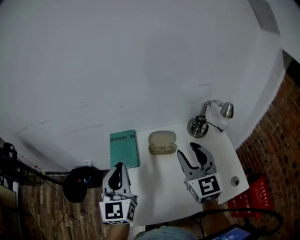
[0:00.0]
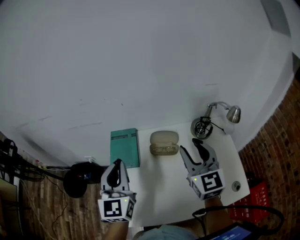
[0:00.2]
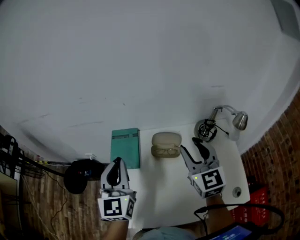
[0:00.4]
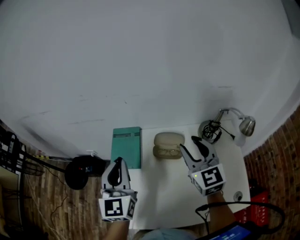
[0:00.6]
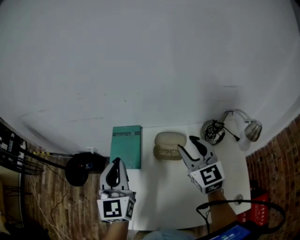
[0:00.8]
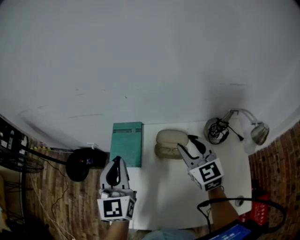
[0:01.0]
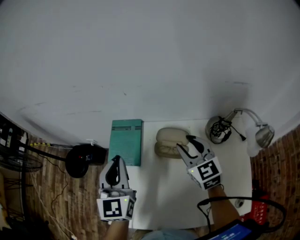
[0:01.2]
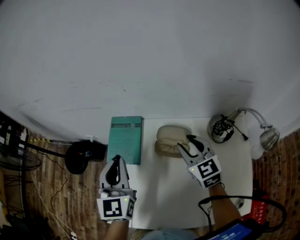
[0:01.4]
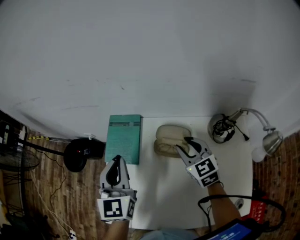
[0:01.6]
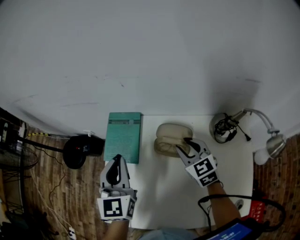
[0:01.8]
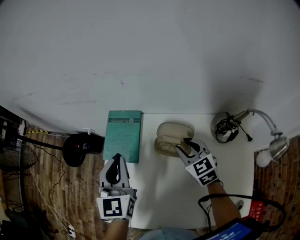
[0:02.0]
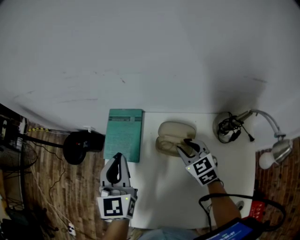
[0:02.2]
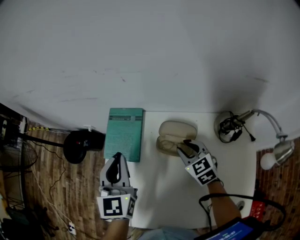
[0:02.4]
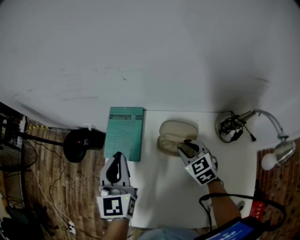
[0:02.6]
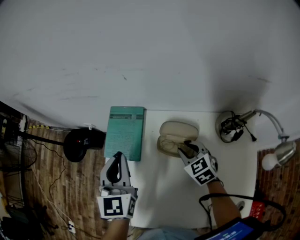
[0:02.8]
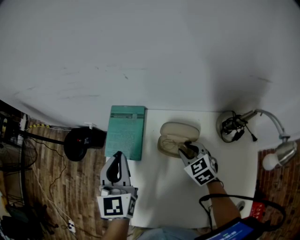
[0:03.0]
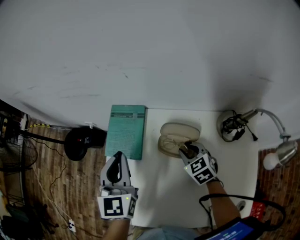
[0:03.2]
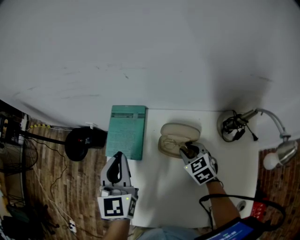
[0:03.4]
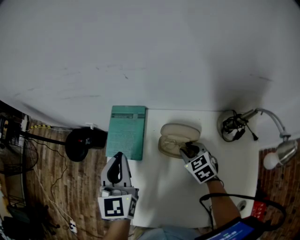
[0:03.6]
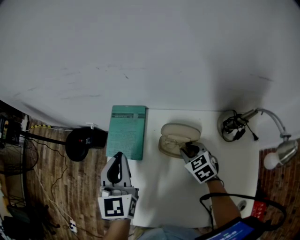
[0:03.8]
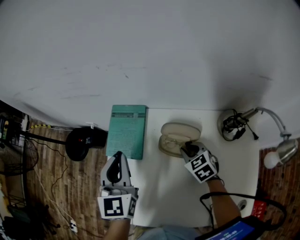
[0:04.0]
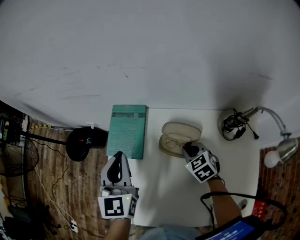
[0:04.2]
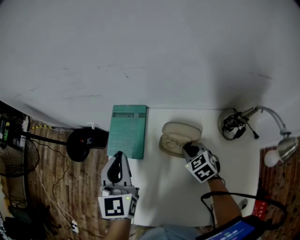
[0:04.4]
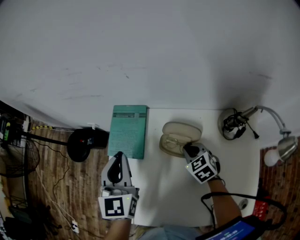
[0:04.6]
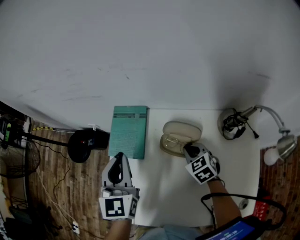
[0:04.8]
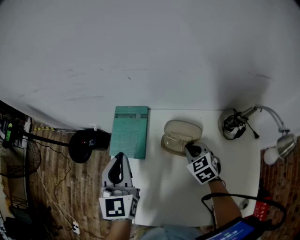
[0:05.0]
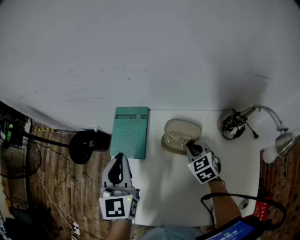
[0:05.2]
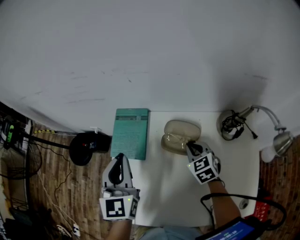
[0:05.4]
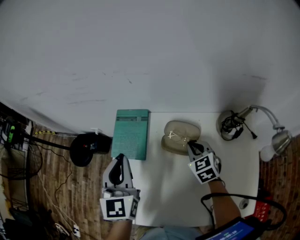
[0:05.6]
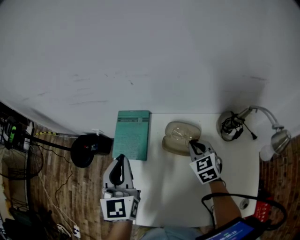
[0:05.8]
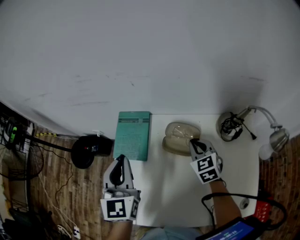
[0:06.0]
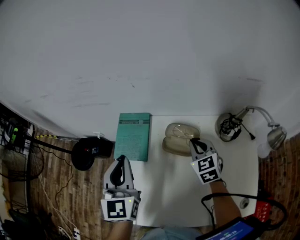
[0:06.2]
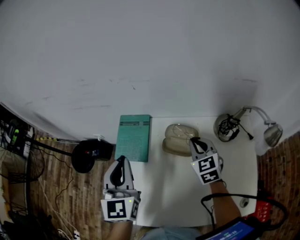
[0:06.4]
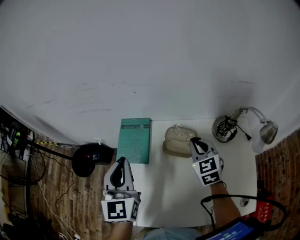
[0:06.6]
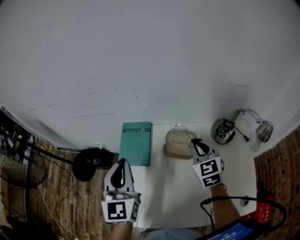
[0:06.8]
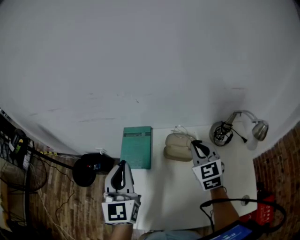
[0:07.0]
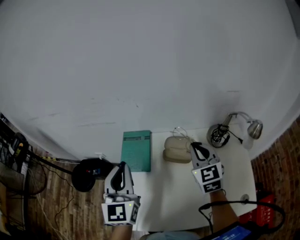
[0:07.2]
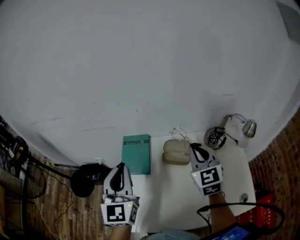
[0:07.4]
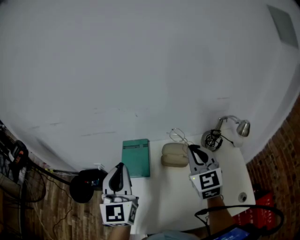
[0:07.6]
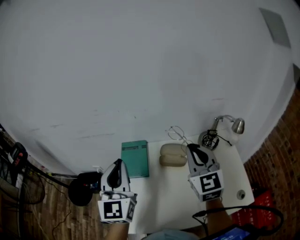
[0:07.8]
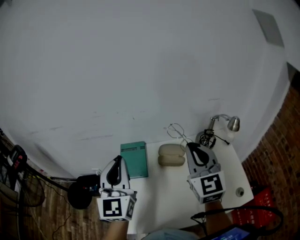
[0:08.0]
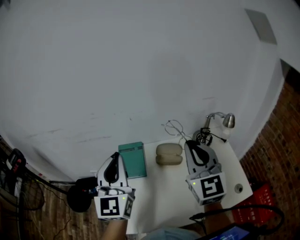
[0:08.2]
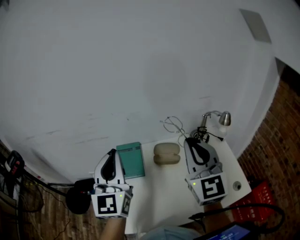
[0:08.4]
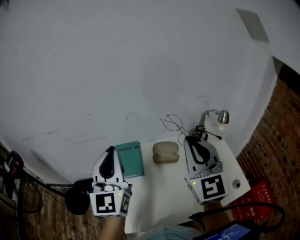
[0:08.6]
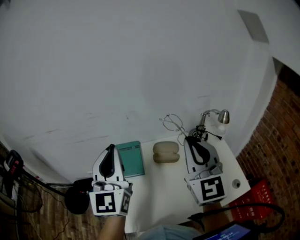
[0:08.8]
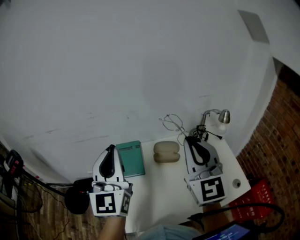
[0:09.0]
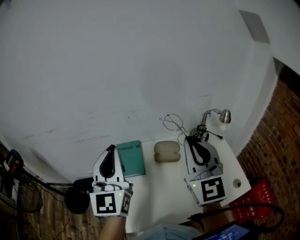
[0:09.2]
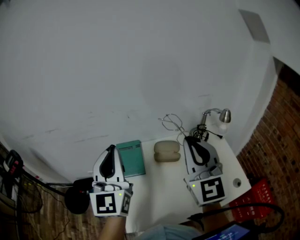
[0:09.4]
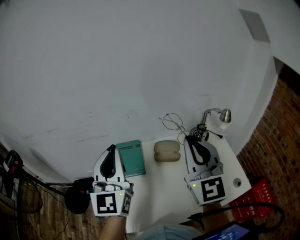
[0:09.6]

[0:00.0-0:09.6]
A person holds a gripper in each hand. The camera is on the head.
0:00.0 to 0:01.6: The left gripper heads forward and downward, covering about 15 cm. Meanwhile the right gripper goes roughly 25 cm downward and forward, and swivels about 30 degrees.
0:01.6 to 0:03.2: The right gripper goes roughly 10 cm downward.
0:03.2 to 0:04.8: The right gripper closes its fingers.
0:04.8 to 0:06.4: The right gripper goes roughly 10 cm upward, and swivels approximately 20 degrees. The left gripper heads upward, covering approximately 5 cm.
0:06.4 to 0:08.0: The right gripper heads upward and backward, covering approximately 30 cm, and angles its fingers upward, by roughly 30 degrees. Meanwhile the left gripper travels upward by some 15 cm.
0:08.0 to 0:09.6: The left gripper shifts approximately 5 cm upward, while the right gripper moves upward and backward, approximately 10 cm.

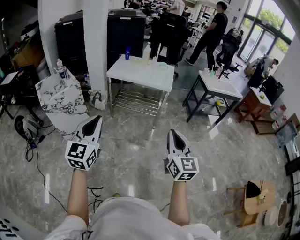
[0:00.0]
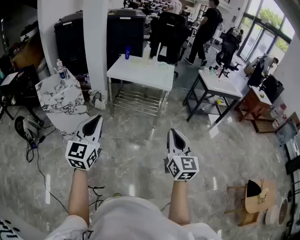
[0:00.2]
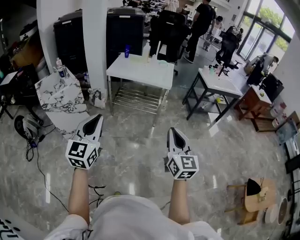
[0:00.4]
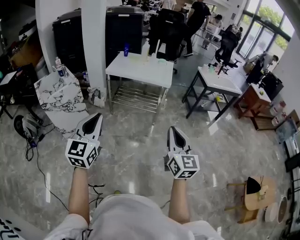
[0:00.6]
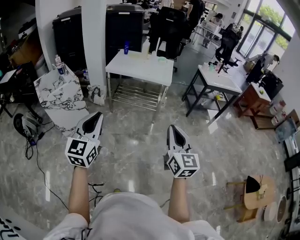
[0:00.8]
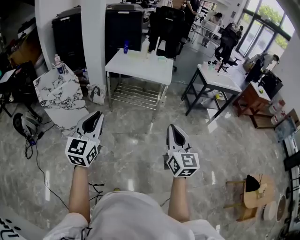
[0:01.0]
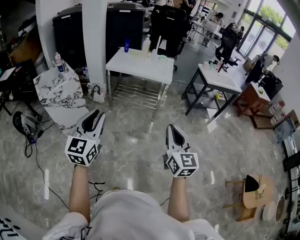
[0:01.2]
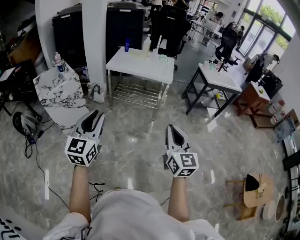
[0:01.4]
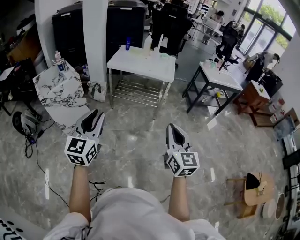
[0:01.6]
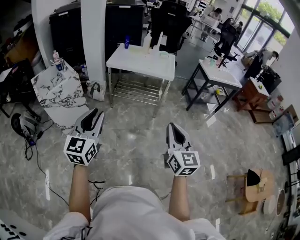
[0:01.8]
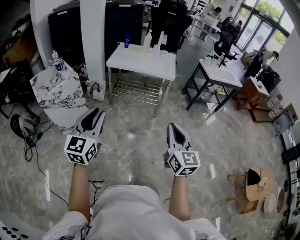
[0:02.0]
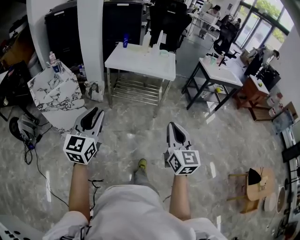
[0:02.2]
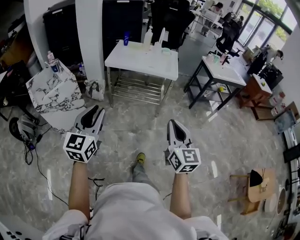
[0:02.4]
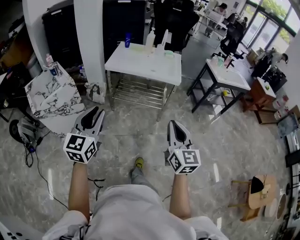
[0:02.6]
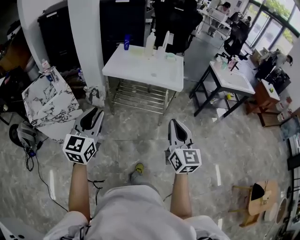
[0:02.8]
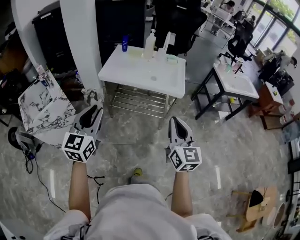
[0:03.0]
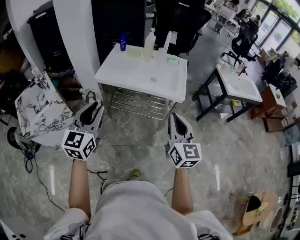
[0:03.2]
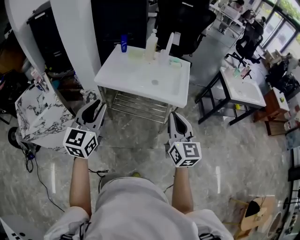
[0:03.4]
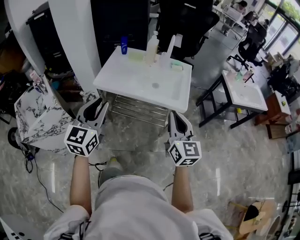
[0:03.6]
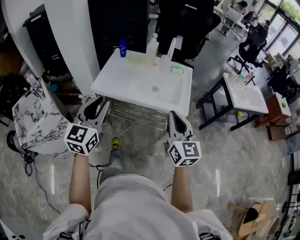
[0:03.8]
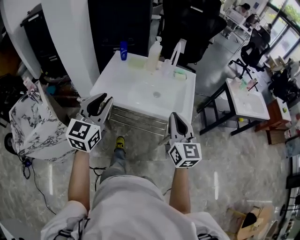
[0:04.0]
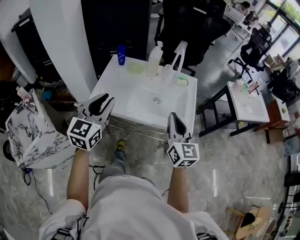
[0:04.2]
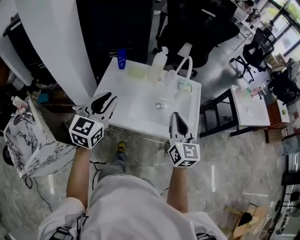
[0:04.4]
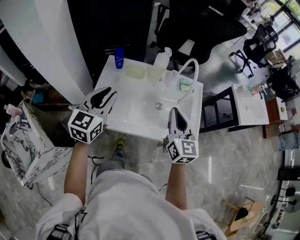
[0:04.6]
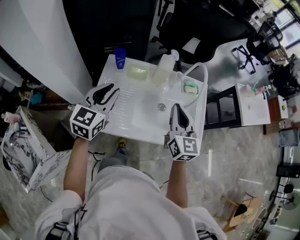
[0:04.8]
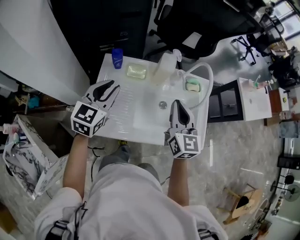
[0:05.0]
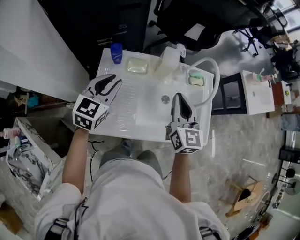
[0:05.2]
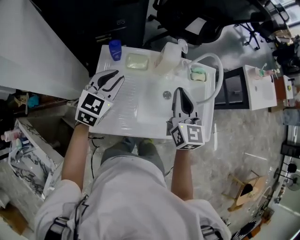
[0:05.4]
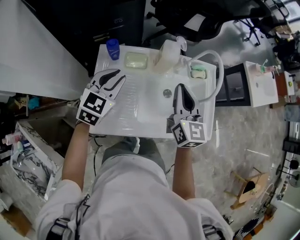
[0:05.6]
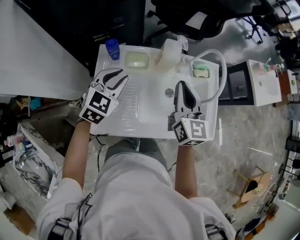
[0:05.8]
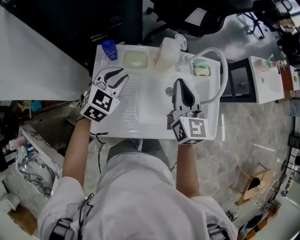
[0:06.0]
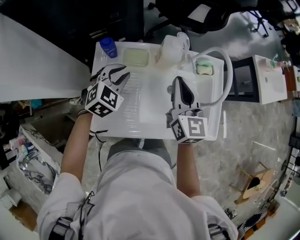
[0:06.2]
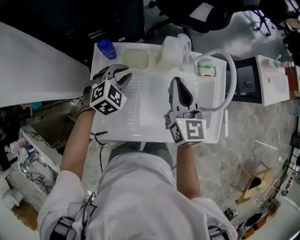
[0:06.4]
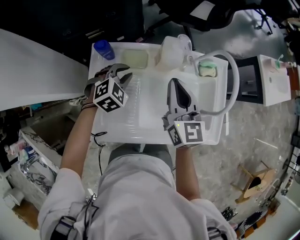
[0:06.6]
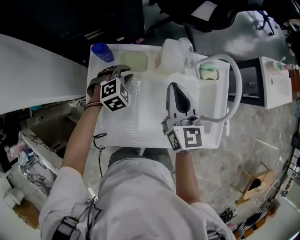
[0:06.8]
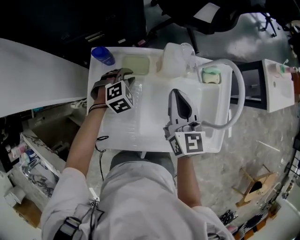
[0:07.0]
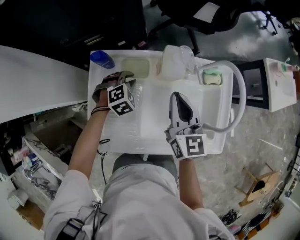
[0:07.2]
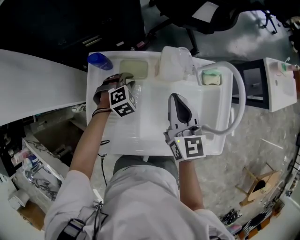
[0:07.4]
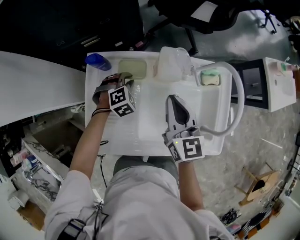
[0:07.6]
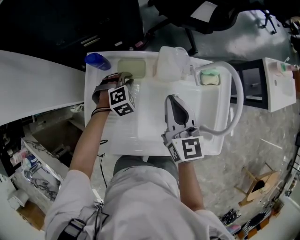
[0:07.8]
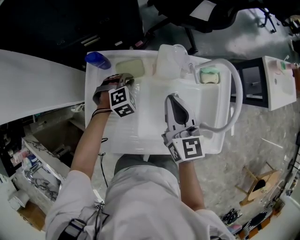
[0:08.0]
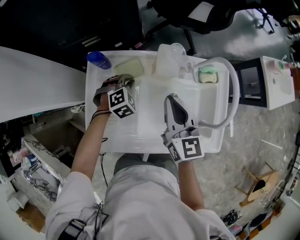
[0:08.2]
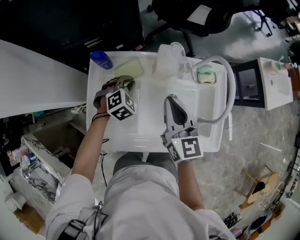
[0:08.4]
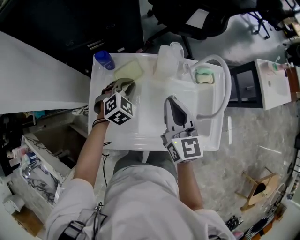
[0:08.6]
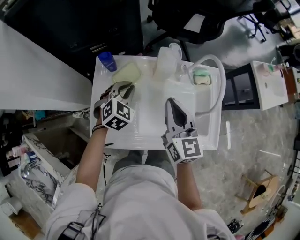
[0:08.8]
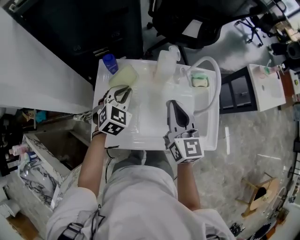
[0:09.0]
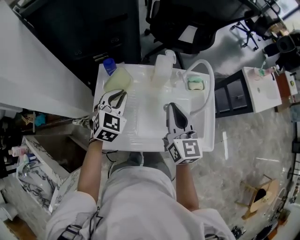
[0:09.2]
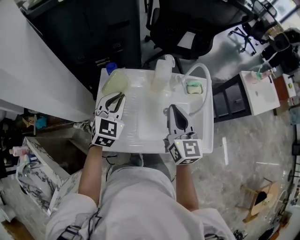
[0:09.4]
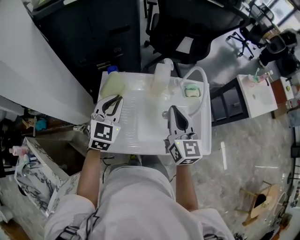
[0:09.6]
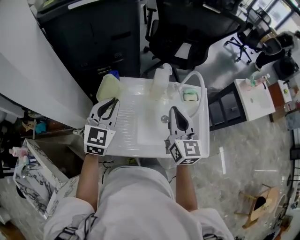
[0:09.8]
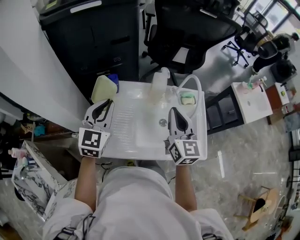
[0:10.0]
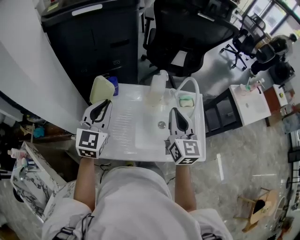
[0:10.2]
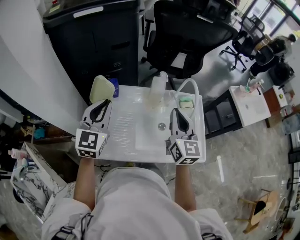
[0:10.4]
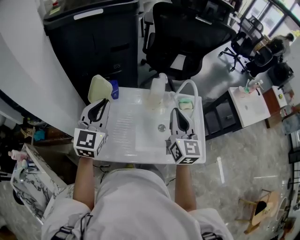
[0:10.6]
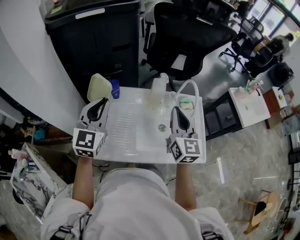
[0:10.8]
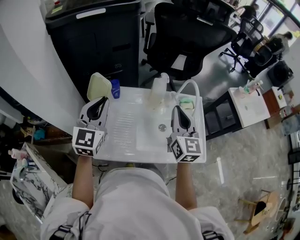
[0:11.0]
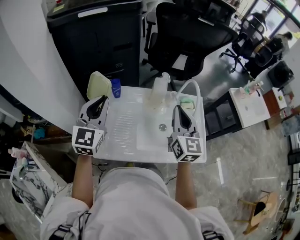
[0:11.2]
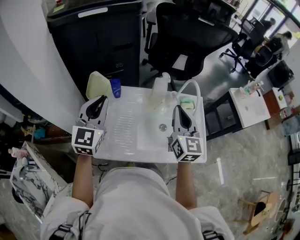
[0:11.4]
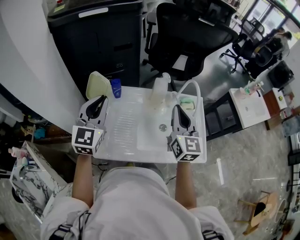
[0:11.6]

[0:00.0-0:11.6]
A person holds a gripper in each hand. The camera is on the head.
0:00.0 to 0:01.4: There are only small adjustments of the grippers.
0:01.4 to 0:02.8: The grippers both shift forward by some 30 cm.
0:02.8 to 0:04.4: The two grippers travel together, forward, about 70 cm.
0:04.4 to 0:05.8: The left gripper moves forward and downward, about 30 cm, and turns by about 30 degrees. Meanwhile the right gripper shifts approximately 25 cm forward and to the left.
0:05.8 to 0:07.2: The left gripper heads downward and forward, covering some 20 cm, and turns by some 40 degrees. Meanwhile the right gripper goes approximately 10 cm downward and forward.
0:07.2 to 0:08.8: The left gripper travels upward and backward by roughly 15 cm, and rotates roughly 20 degrees. Meanwhile the right gripper goes roughly 5 cm backward.
0:08.8 to 0:10.2: The right gripper heads upward, covering roughly 10 cm; the left gripper travels upward and backward by roughly 25 cm, and tips its fingers upward by some 30 degrees.
0:10.2 to 0:11.6: The grippers move only a little.

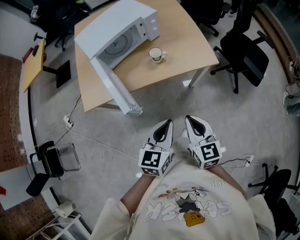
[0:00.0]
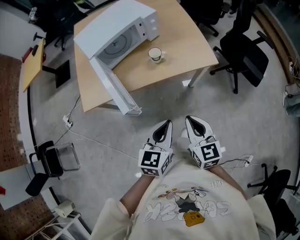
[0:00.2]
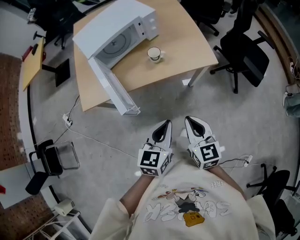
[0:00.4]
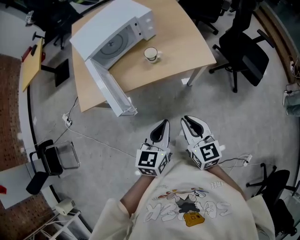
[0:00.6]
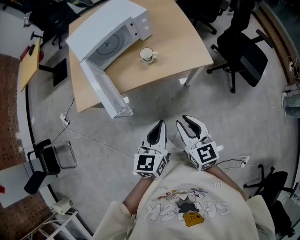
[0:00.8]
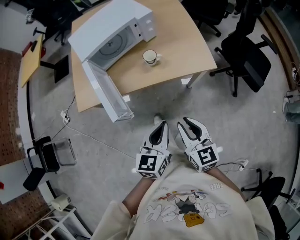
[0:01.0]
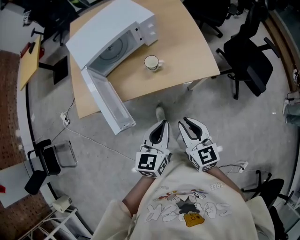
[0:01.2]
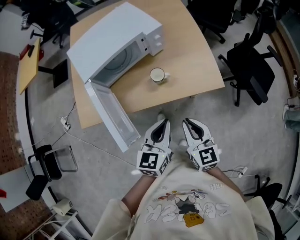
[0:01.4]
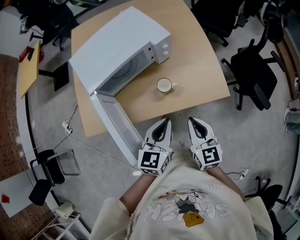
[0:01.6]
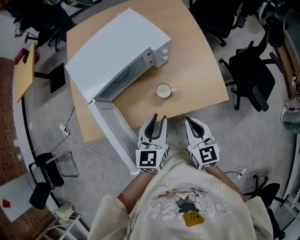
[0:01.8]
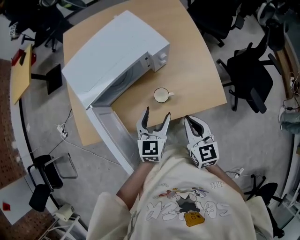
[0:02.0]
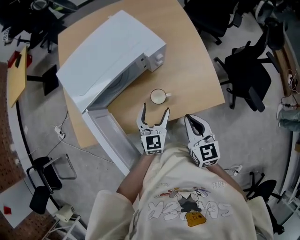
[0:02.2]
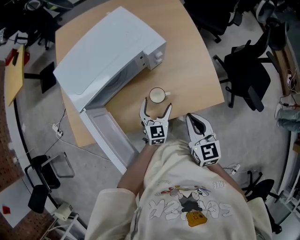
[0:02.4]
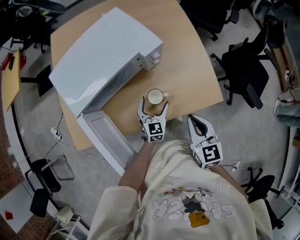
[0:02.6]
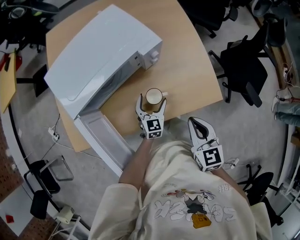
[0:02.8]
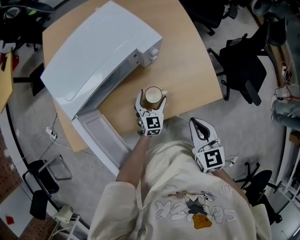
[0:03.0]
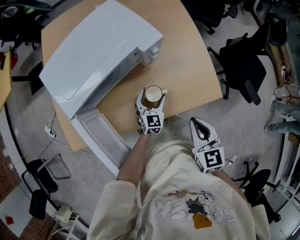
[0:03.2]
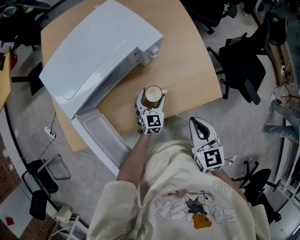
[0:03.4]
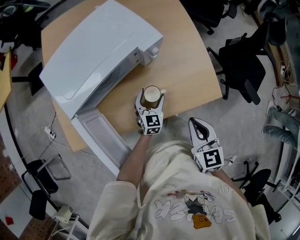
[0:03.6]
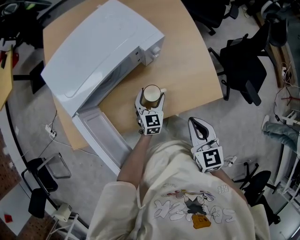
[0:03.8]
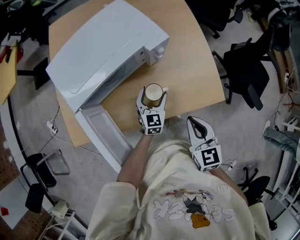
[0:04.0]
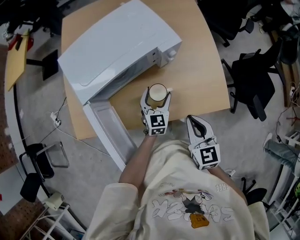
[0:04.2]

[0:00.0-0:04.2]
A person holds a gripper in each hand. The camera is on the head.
0:00.0 to 0:01.4: The two grippers go some 15 cm forward.
0:01.4 to 0:02.8: The left gripper goes roughly 30 cm forward and downward, and opens up, while the right gripper travels forward by about 15 cm.
0:02.8 to 0:04.2: The left gripper moves roughly 5 cm.
